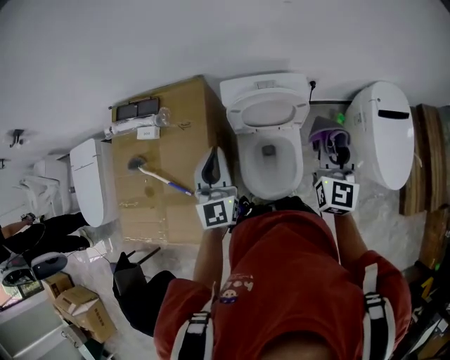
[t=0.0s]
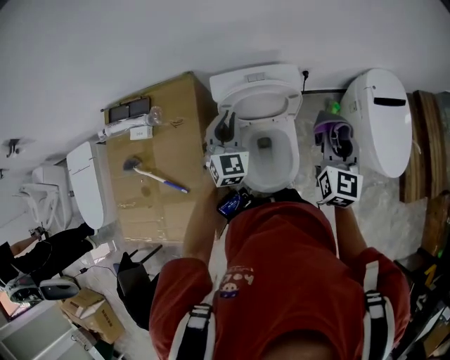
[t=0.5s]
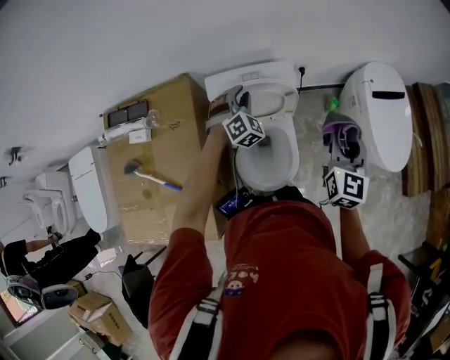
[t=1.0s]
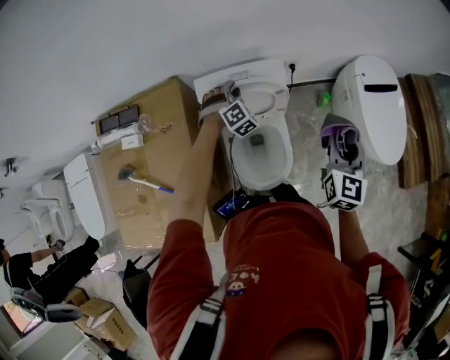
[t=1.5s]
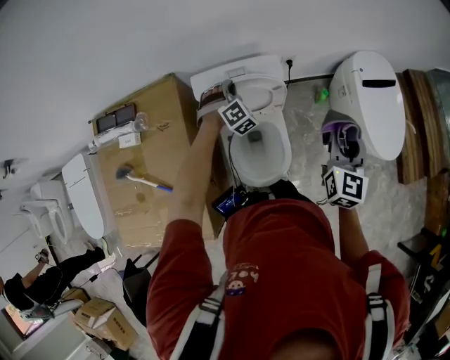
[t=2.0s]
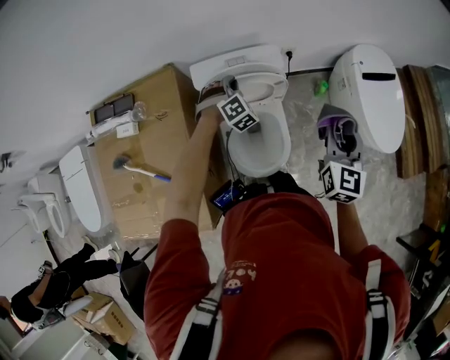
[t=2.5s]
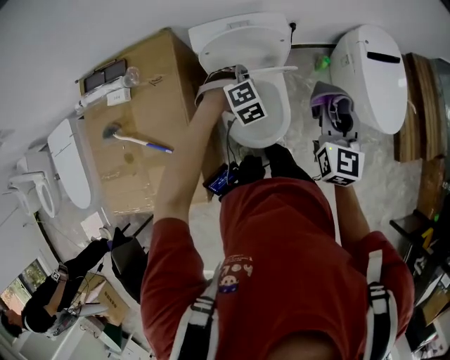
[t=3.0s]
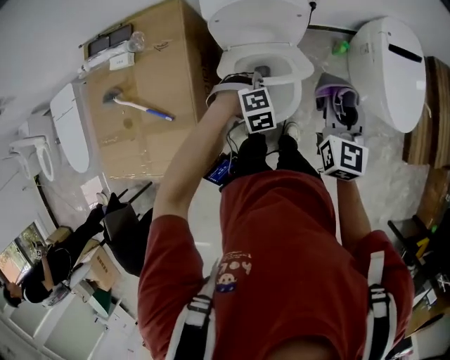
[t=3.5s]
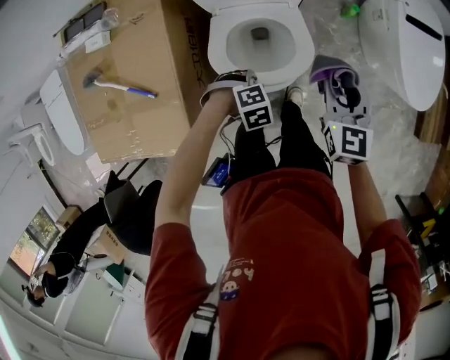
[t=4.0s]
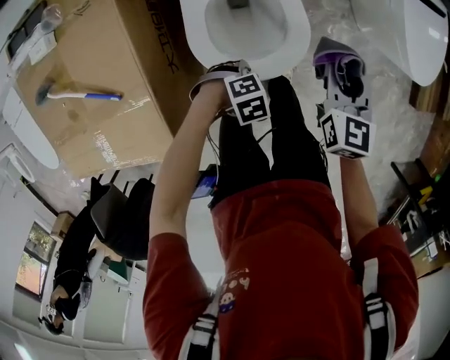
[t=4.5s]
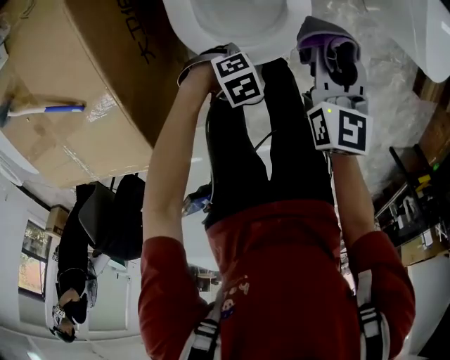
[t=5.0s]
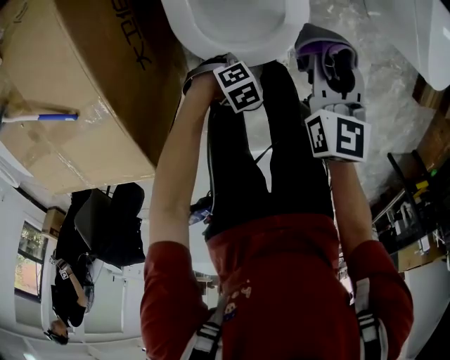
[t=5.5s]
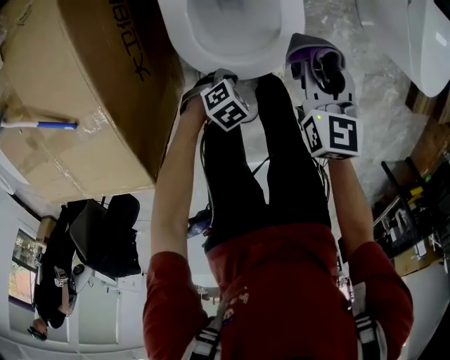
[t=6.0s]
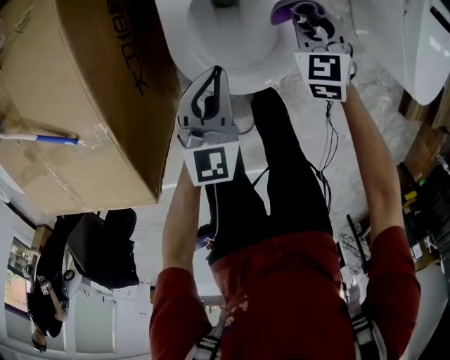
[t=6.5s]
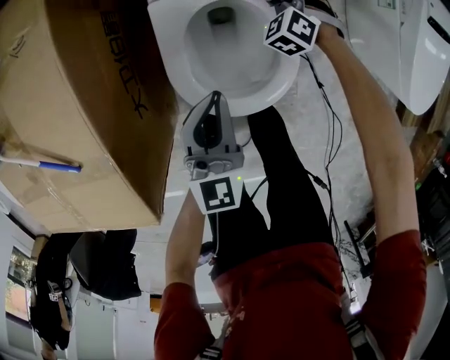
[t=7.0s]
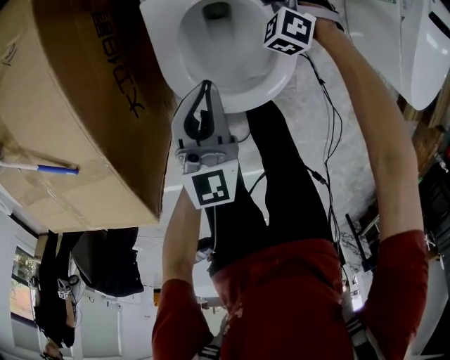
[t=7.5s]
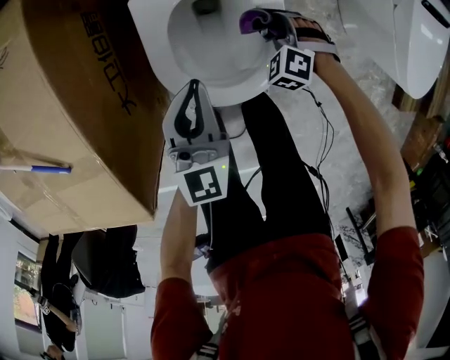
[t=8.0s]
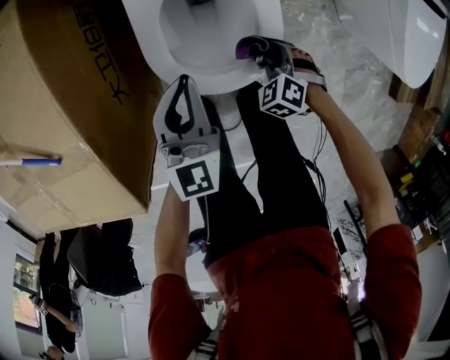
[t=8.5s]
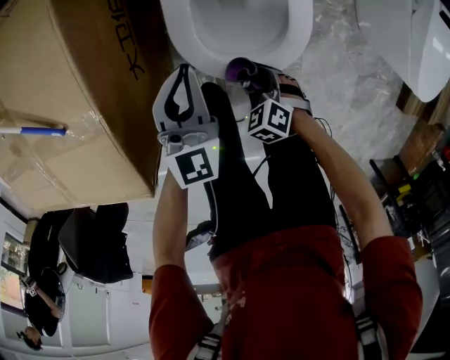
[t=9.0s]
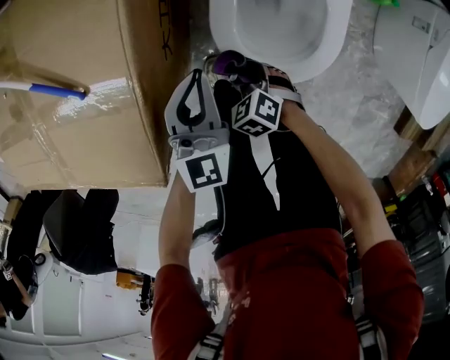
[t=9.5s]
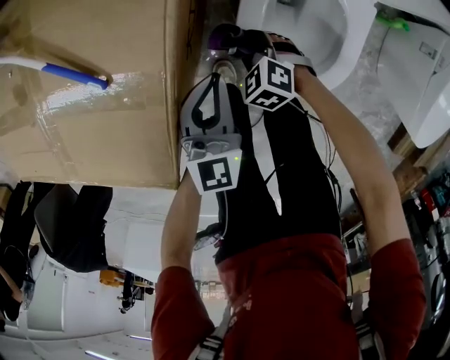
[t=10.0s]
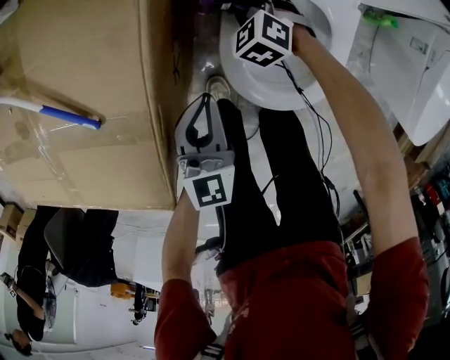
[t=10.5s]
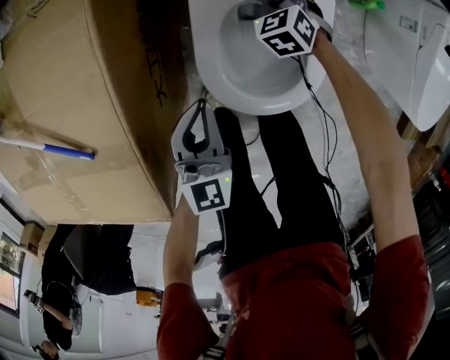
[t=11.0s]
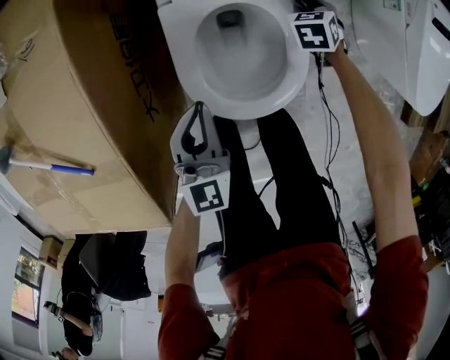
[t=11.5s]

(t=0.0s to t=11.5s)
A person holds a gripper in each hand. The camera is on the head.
t=0.0s - t=2.0s: The right gripper heads to the right, covering roughly 10 cm, while the left gripper heads forward, downward and to the right, covering roughly 30 cm, and rotates around the line of its fingers by about 60 degrees, clockwise from behind.
t=2.0s - t=4.0s: The right gripper is displaced downward by approximately 15 cm, and turns by roughly 20 degrees. The left gripper shifts by some 40 cm, and angles its fingers downward, by roughly 50 degrees.
t=4.0s - t=6.0s: Both grippers move downward, approximately 25 cm. The left gripper swivels roughly 30 degrees.
t=6.0s - t=7.5s: The right gripper ends up some 30 cm from where it was, and rolls counterclockwise, seen from behind, by roughly 70 degrees. The left gripper moves upward, roughly 20 cm, and angles its fingers upward, by approximately 50 degrees.
t=7.5s - t=9.5s: The right gripper ends up about 40 cm from where it was, and rotates roughly 30 degrees. Meanwhile the left gripper moves approximately 15 cm.
t=9.5s - t=11.5s: The left gripper changes place by about 10 cm, while the right gripper ends up some 40 cm from where it was, and turns by about 50 degrees.

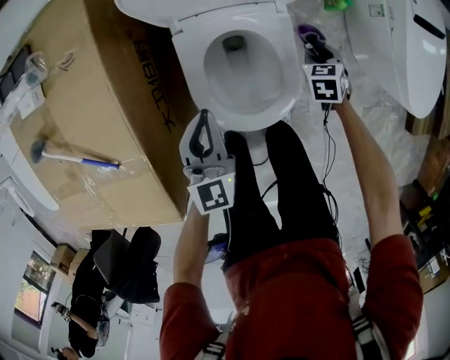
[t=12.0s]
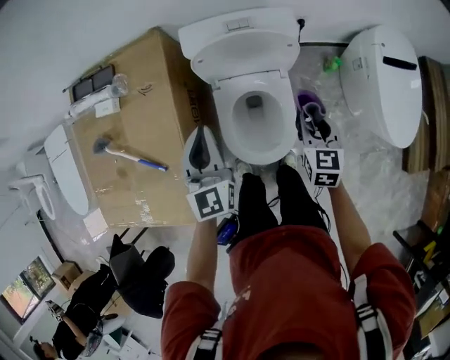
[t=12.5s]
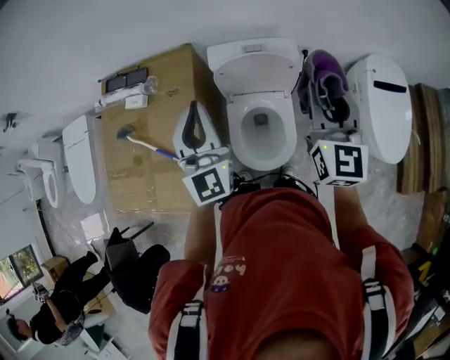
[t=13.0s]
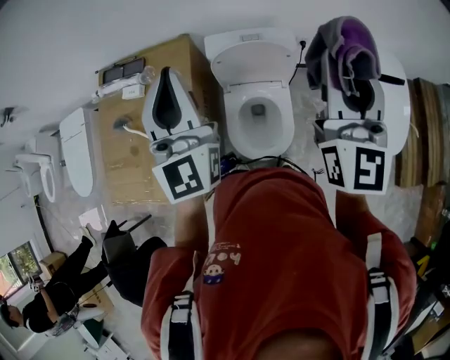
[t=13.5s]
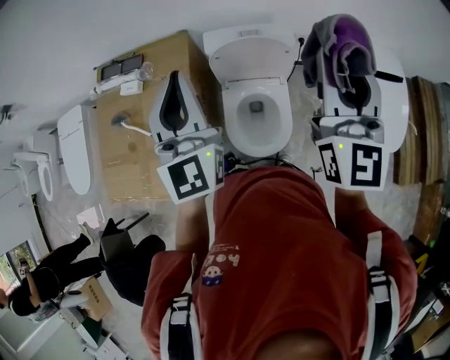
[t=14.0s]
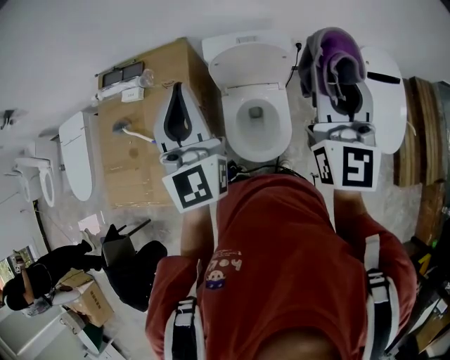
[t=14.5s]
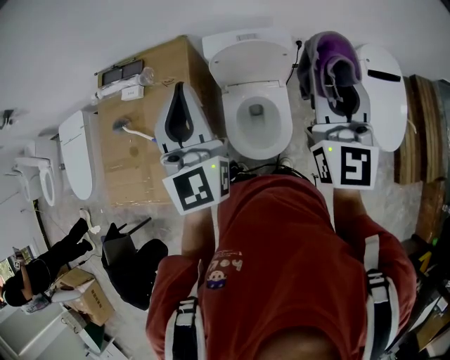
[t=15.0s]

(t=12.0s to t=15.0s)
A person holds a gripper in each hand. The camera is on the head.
t=12.0s - t=13.5s: The grippers both shift upward by some 60 cm. The right gripper angles its fingers upward, by roughly 70 degrees, while the left gripper tilts its fingers approximately 40 degrees upward.
t=13.5s - t=15.0s: There are only small adjustments of the grippers.

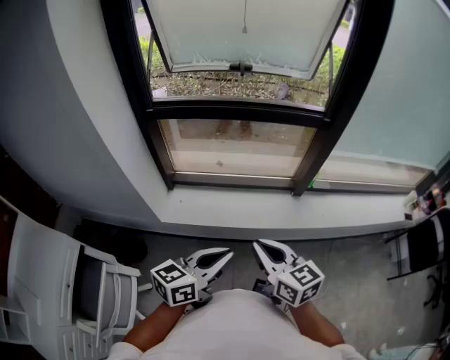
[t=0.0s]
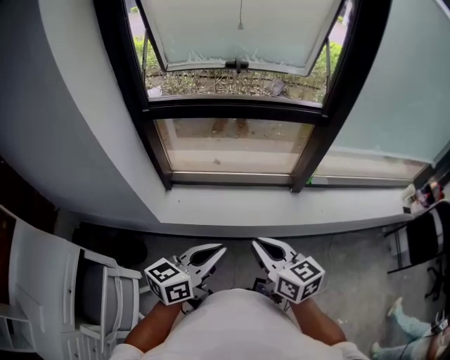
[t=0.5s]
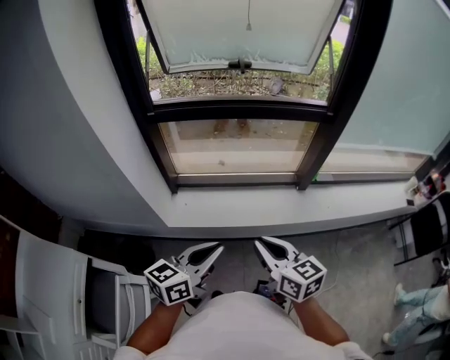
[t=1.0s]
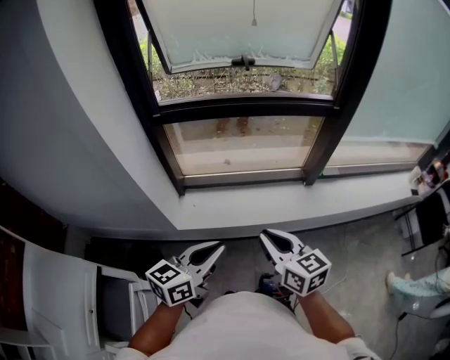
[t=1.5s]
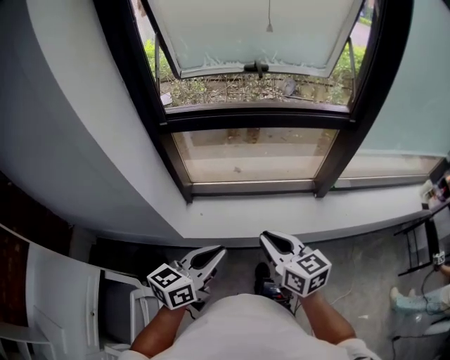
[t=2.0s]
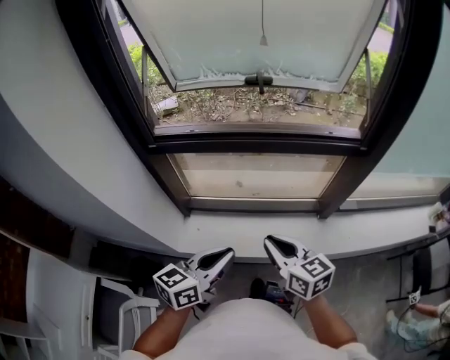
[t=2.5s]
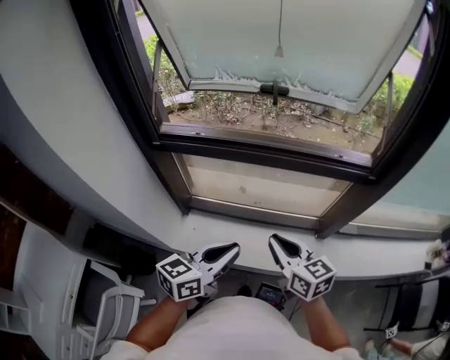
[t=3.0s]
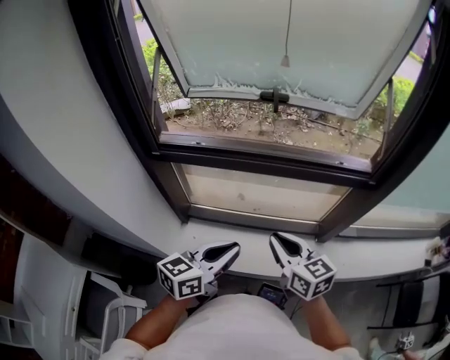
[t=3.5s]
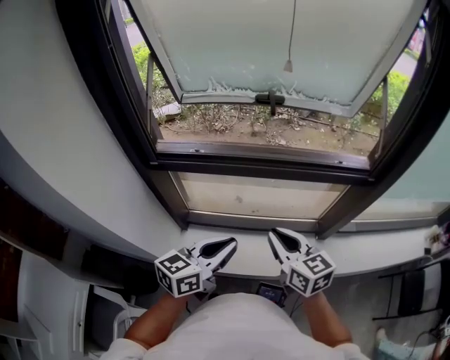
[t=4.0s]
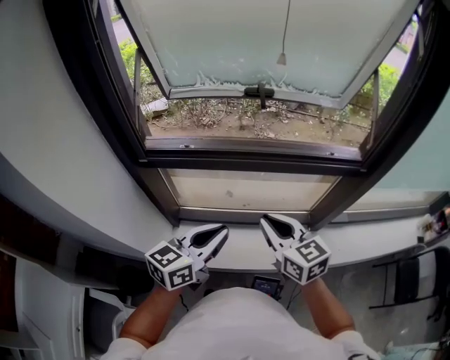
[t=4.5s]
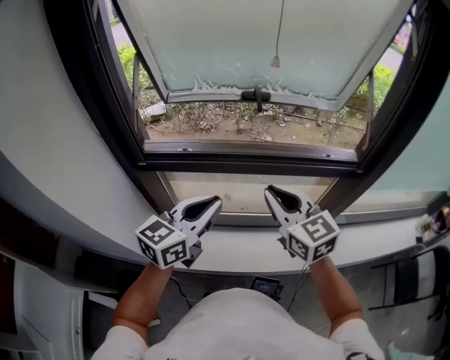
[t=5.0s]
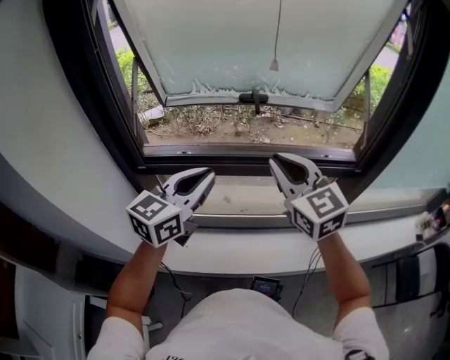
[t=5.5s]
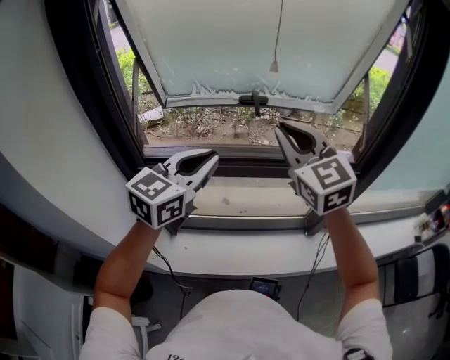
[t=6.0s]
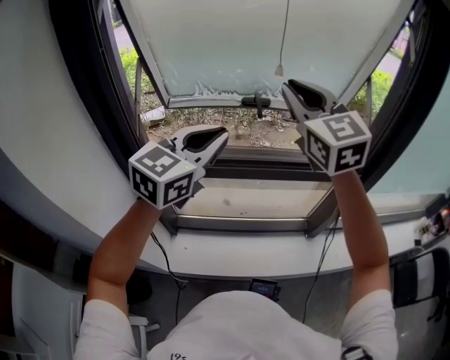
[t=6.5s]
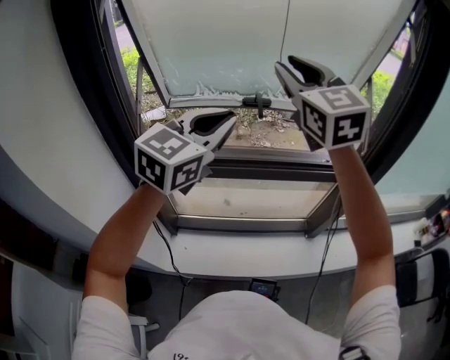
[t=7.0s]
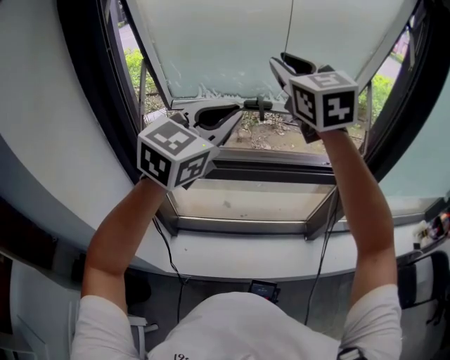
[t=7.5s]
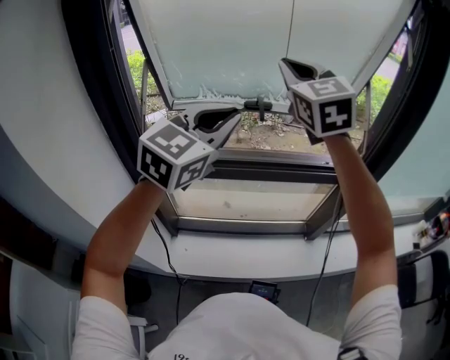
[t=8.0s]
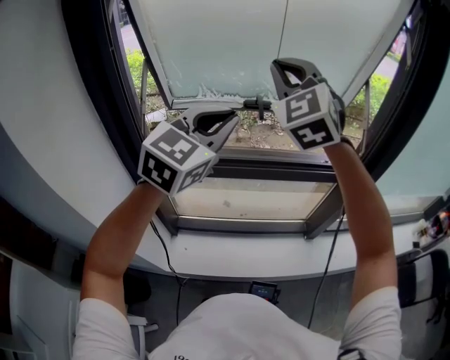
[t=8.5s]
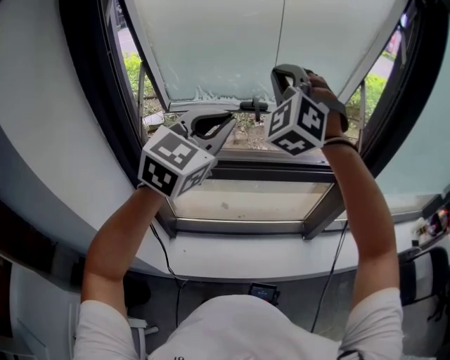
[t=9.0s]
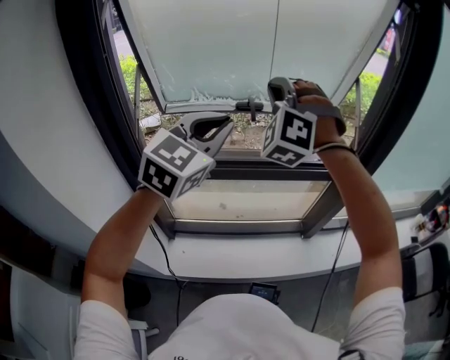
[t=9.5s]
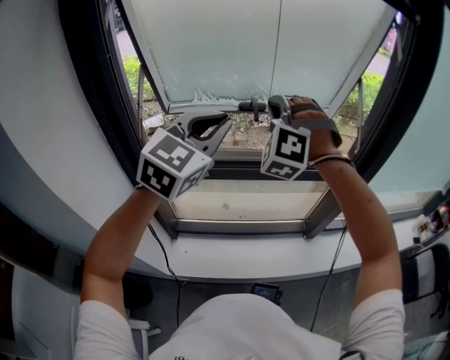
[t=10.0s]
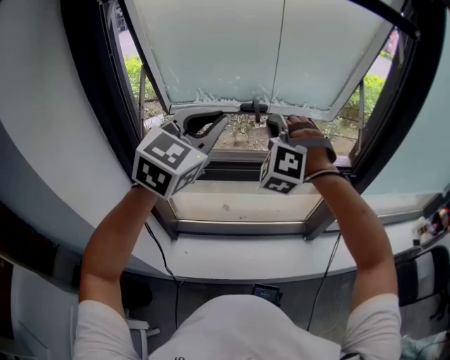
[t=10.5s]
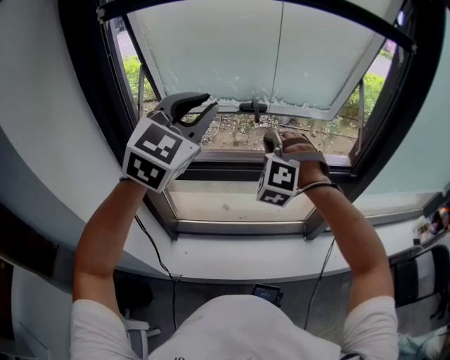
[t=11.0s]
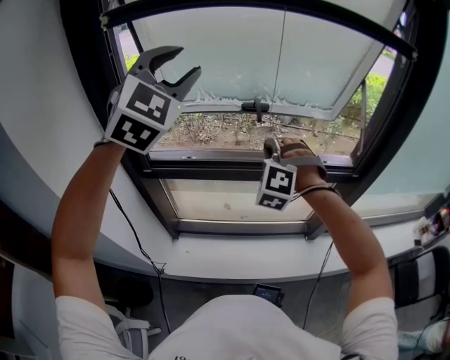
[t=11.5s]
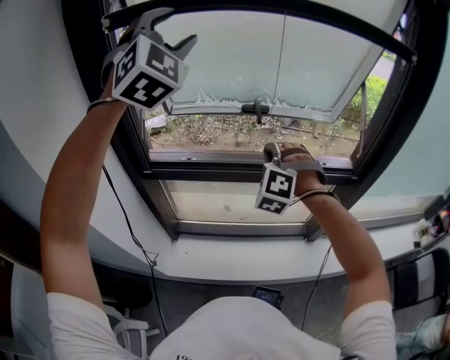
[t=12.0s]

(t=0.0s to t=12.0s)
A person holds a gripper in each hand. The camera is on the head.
t=0.0s - t=2.0s: The two grippers go approximately 15 cm to the left and forward.
t=2.0s - t=4.0s: The grippers both shift forward by roughly 25 cm.
t=4.0s - t=6.0s: The two grippers go roughly 25 cm upward and forward. The right gripper turns by roughly 40 degrees. Meanwhile the left gripper rotates about 30 degrees.
t=6.0s - t=8.0s: The right gripper shifts some 15 cm upward and forward, while the left gripper heads upward, covering about 10 cm.
t=8.0s - t=10.0s: The right gripper is displaced downward by about 10 cm, and twists roughly 60 degrees counterclockwise, seen from behind.
t=10.0s - t=12.0s: The right gripper shifts about 15 cm downward. The left gripper travels upward and to the left by approximately 20 cm, rolls clockwise, seen from behind, by some 40 degrees, and opens up.
